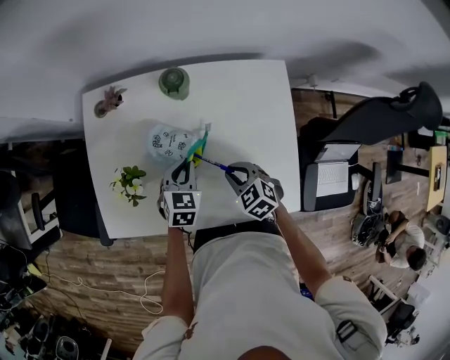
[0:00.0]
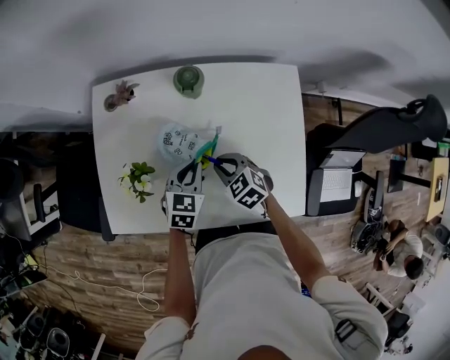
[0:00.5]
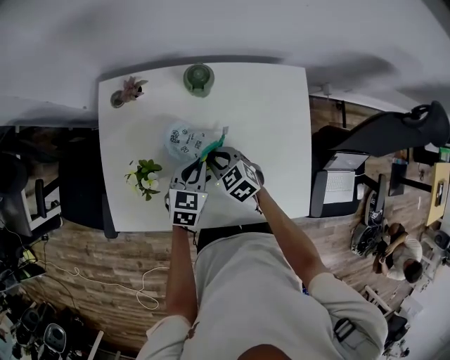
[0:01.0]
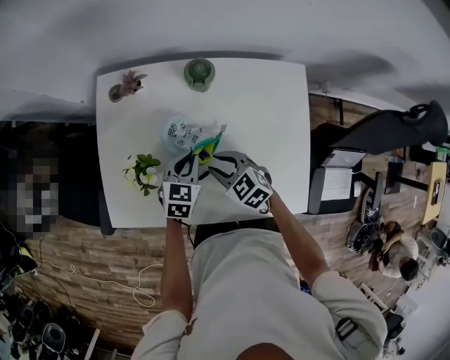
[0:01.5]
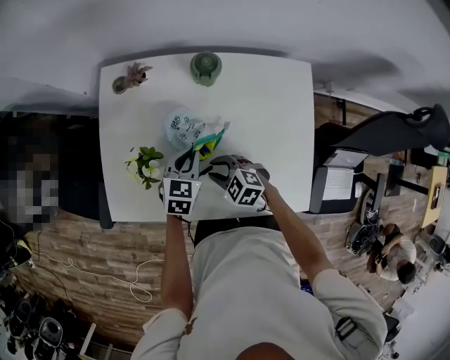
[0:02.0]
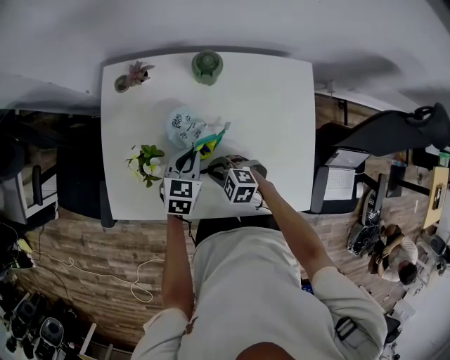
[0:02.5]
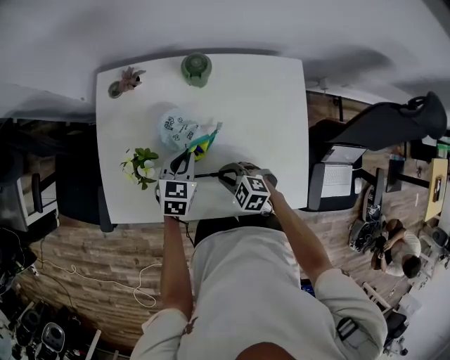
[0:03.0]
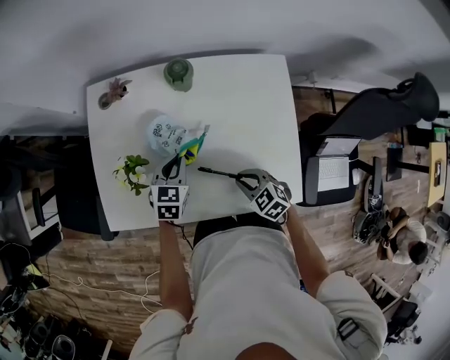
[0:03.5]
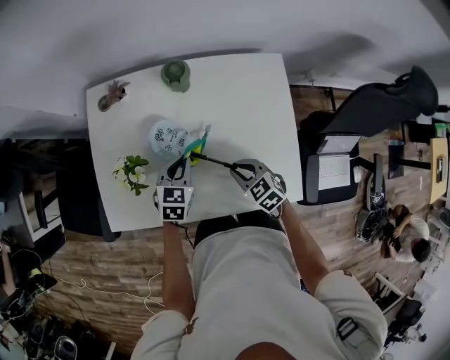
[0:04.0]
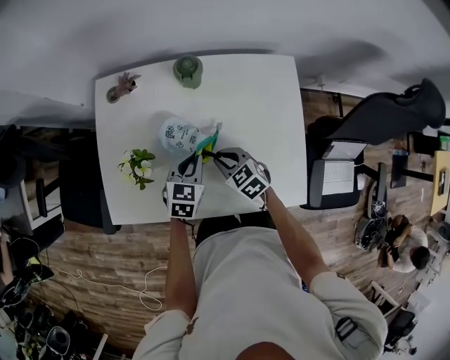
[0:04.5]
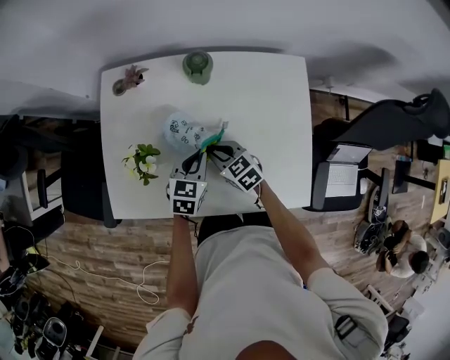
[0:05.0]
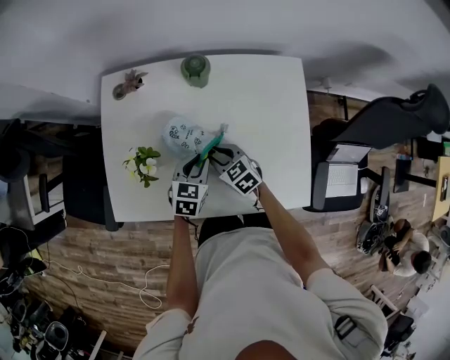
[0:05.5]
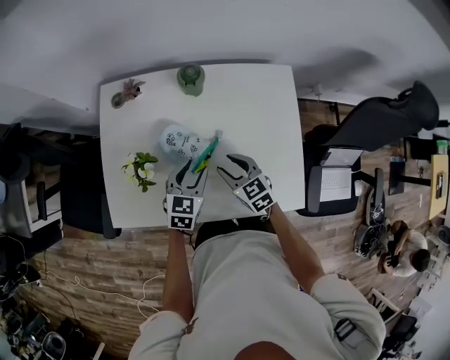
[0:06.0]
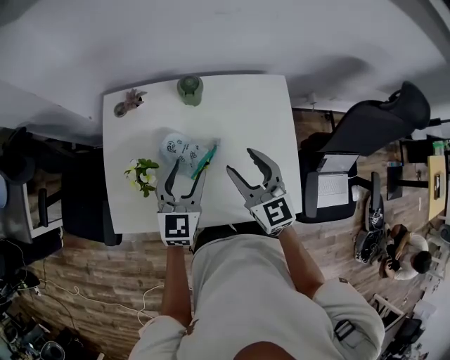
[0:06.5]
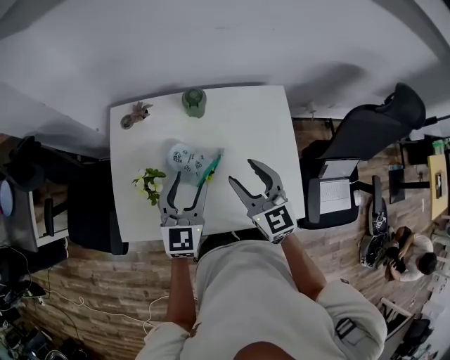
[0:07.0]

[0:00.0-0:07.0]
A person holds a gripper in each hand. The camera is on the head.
0:00.0 to 0:02.0: The right gripper moves to the left, about 10 cm, and turns by about 20 degrees.
0:02.0 to 0:03.5: The right gripper heads to the right and backward, covering some 15 cm, and rotates roughly 20 degrees.
0:03.5 to 0:05.0: The right gripper is displaced forward and to the left by approximately 15 cm.
0:05.0 to 0:07.0: The two grippers go approximately 20 cm upward. The right gripper swivels roughly 40 degrees, and opens its fingers; the left gripper changes its angle by roughly 30 degrees, and opens up.

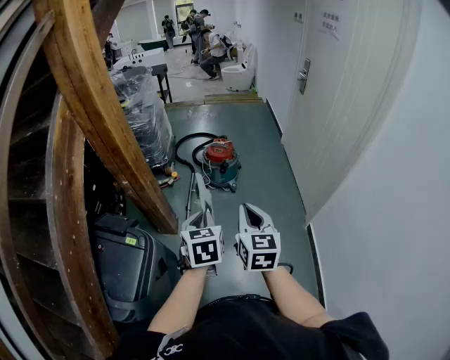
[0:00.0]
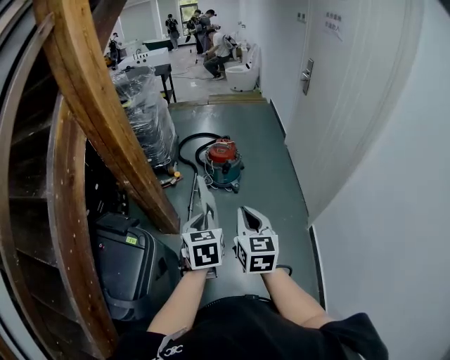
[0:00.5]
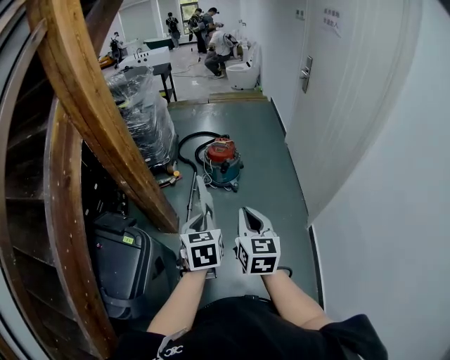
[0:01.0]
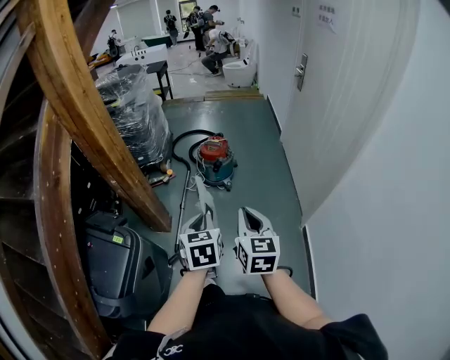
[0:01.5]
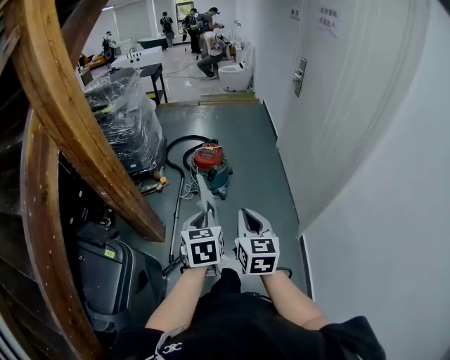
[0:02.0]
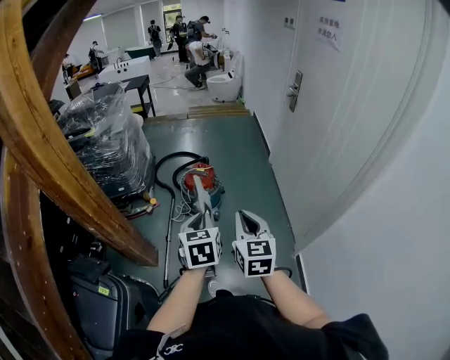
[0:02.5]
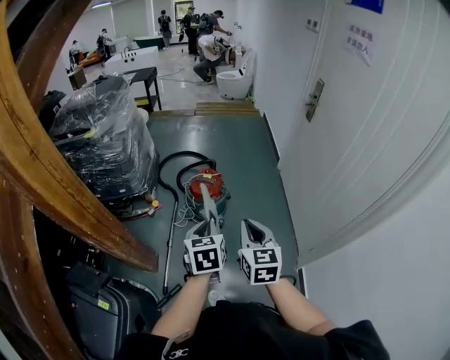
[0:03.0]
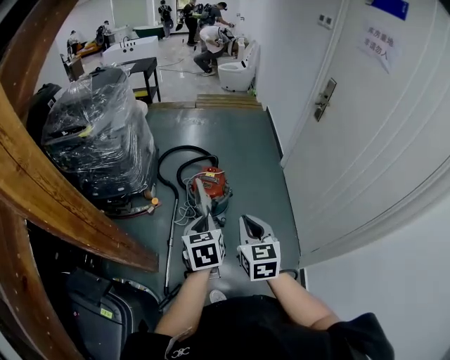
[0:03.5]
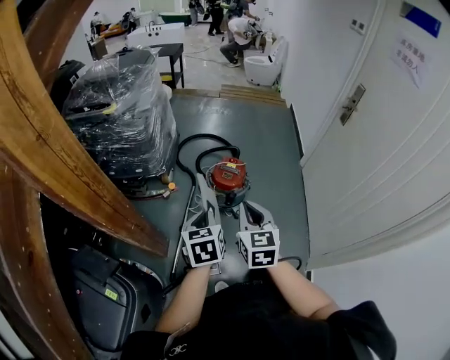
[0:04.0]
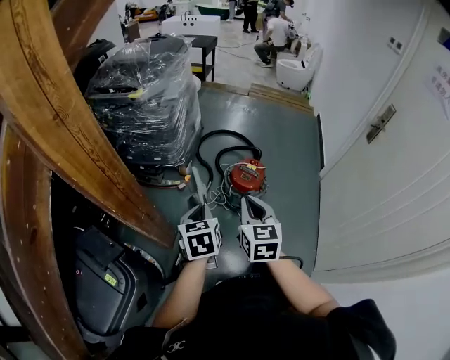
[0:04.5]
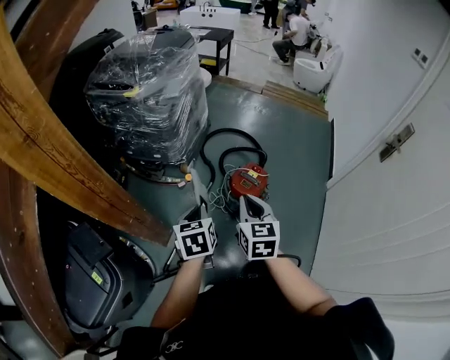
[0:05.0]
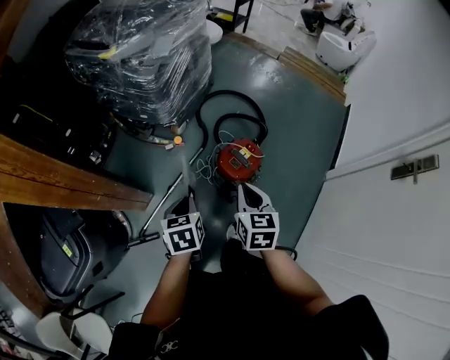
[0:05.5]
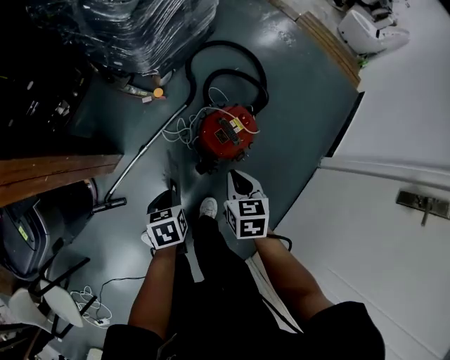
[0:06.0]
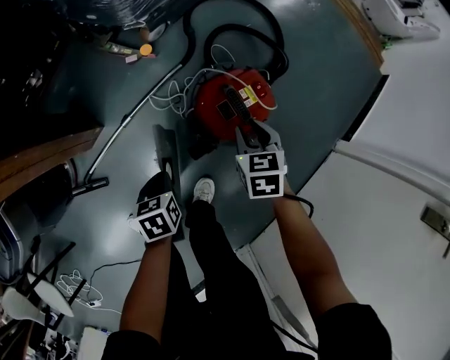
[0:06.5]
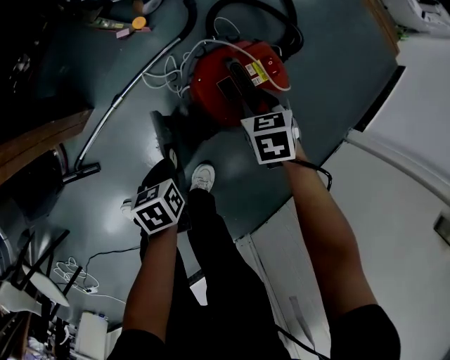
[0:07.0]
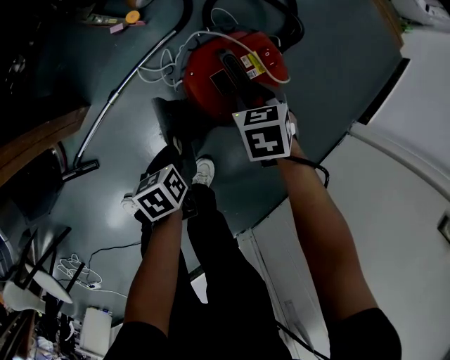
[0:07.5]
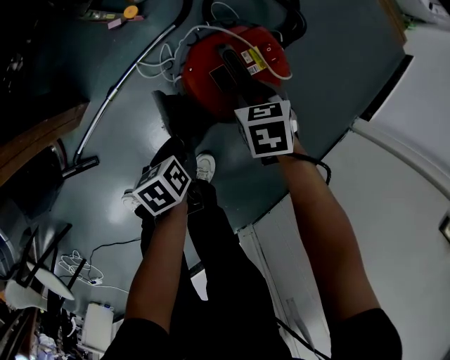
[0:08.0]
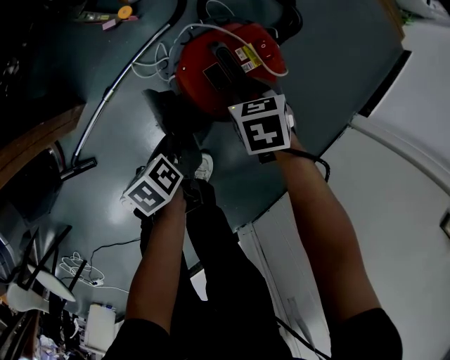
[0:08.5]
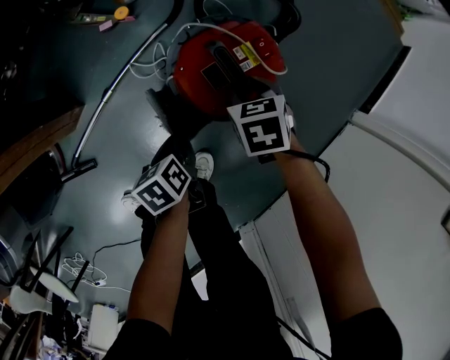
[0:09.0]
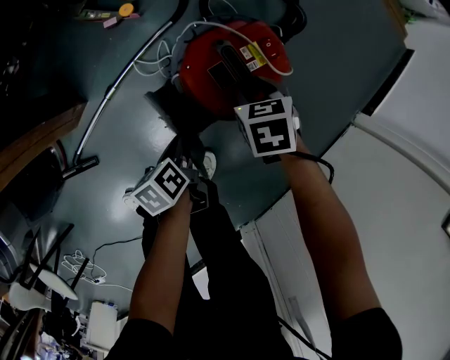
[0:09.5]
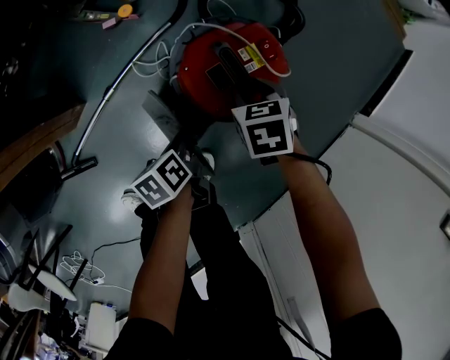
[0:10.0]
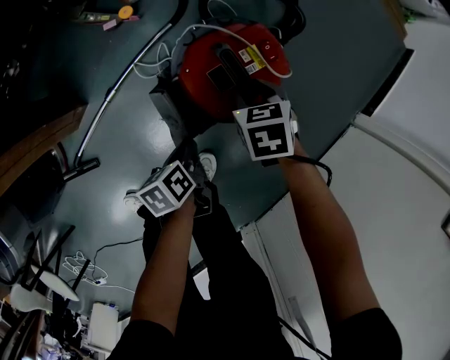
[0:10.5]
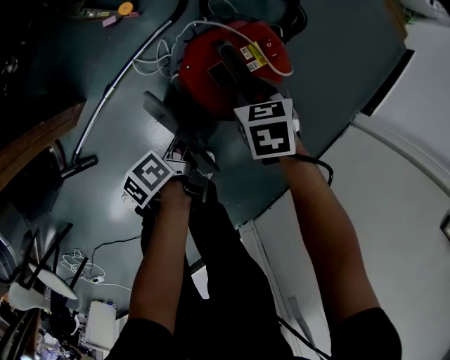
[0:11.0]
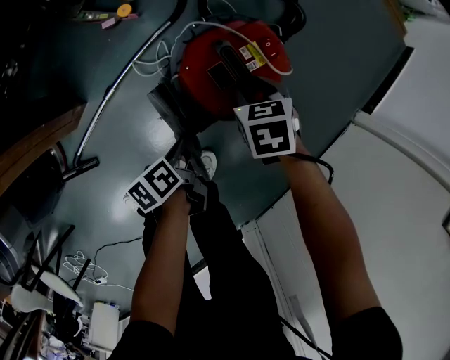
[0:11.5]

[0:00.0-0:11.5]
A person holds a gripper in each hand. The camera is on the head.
0:00.0 to 0:02.0: Both grippers travel together to the right and forward, some 15 cm.
0:02.0 to 0:04.0: The two grippers go some 30 cm forward.
0:04.0 to 0:06.0: The right gripper moves some 40 cm, and rotates roughly 40 degrees; the left gripper travels downward by roughly 30 cm, and turns by about 40 degrees.
0:06.0 to 0:07.5: The right gripper moves downward and forward, approximately 30 cm, swivels about 20 degrees, and opens its fingers, while the left gripper is displaced downward by some 25 cm.

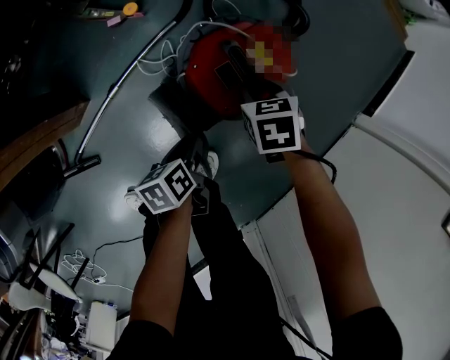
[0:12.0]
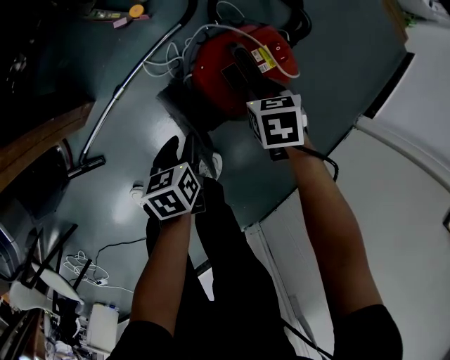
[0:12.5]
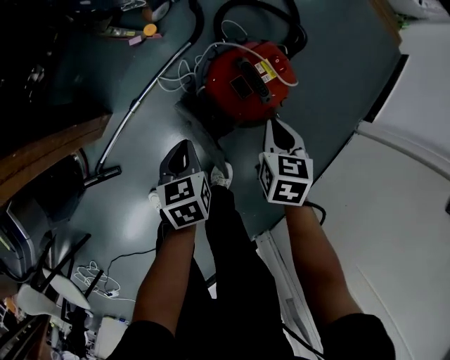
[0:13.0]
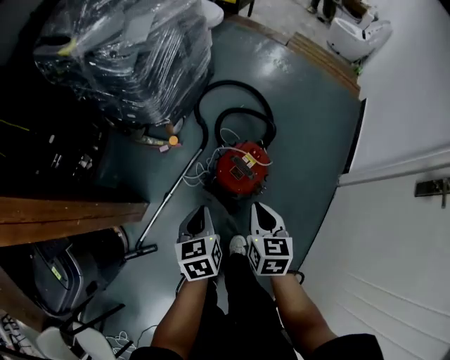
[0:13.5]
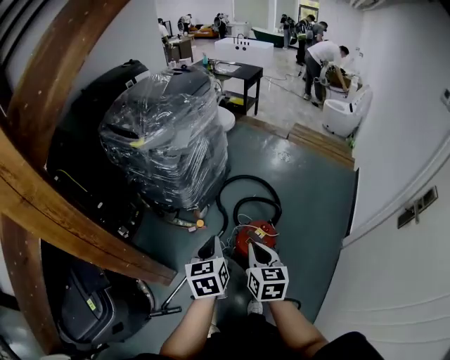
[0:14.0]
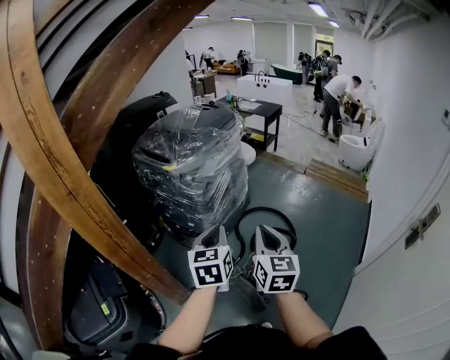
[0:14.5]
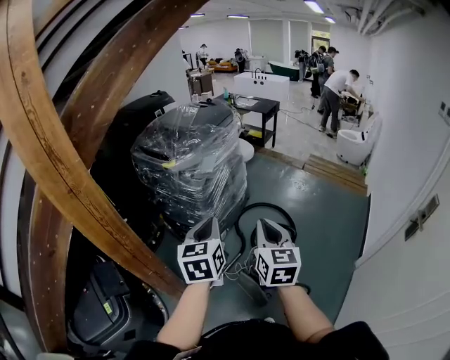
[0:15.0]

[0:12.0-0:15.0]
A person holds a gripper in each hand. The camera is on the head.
0:12.0 to 0:13.5: The left gripper heads upward, covering approximately 35 cm, changes its angle by approximately 40 degrees, and closes; the right gripper moves upward and backward, approximately 35 cm, swivels about 40 degrees, and closes up.
0:13.5 to 0:15.0: The grippers both shift upward by approximately 40 cm. The left gripper changes its angle by approximately 30 degrees; the right gripper tilts its fingers about 30 degrees upward.

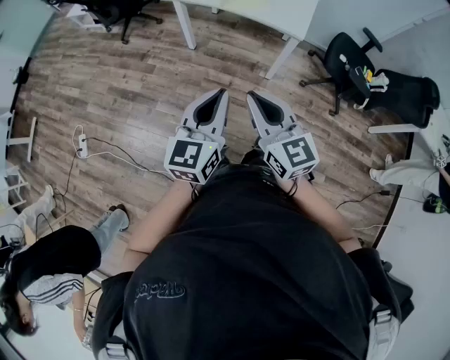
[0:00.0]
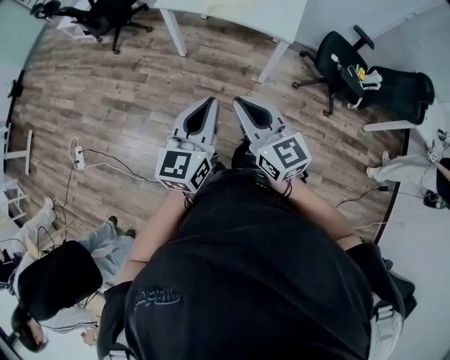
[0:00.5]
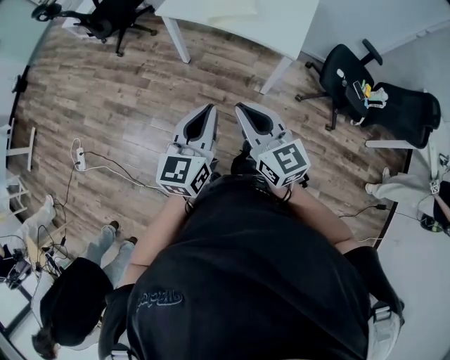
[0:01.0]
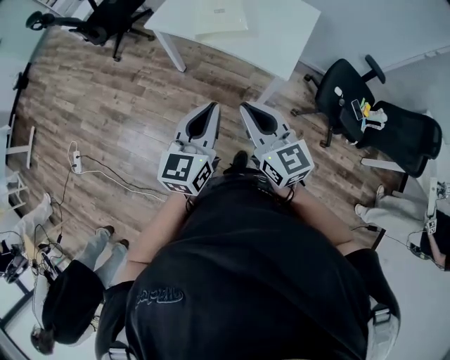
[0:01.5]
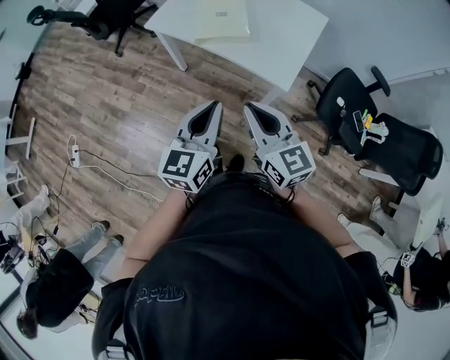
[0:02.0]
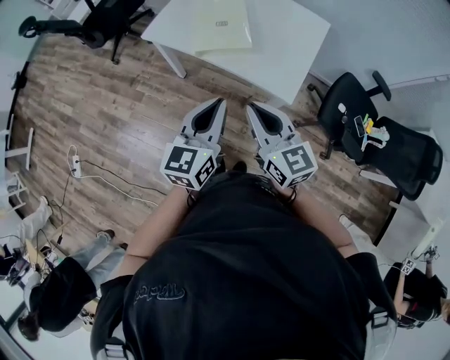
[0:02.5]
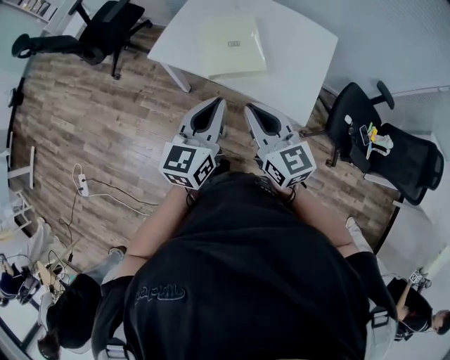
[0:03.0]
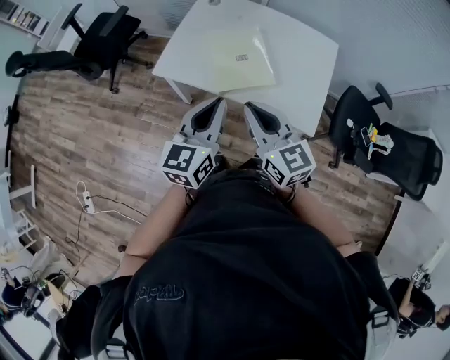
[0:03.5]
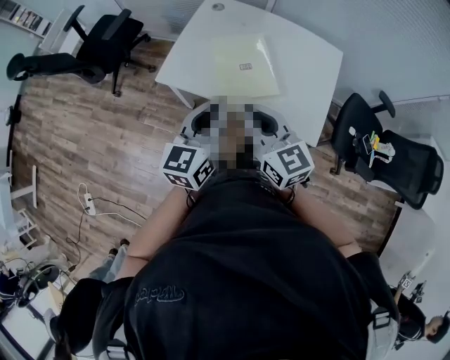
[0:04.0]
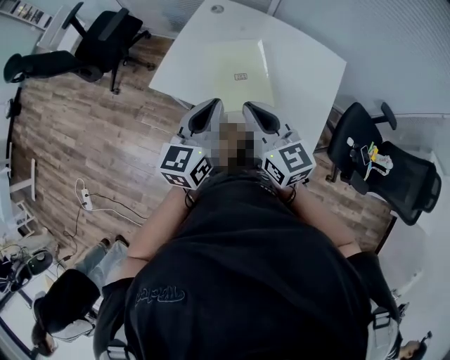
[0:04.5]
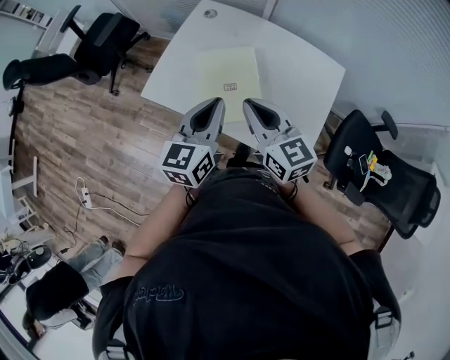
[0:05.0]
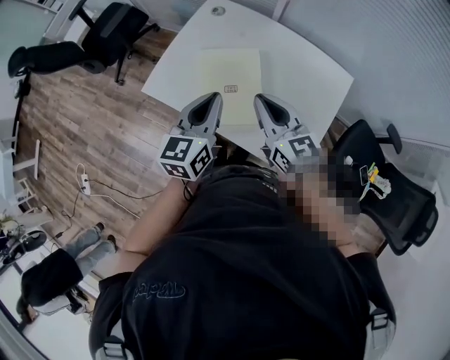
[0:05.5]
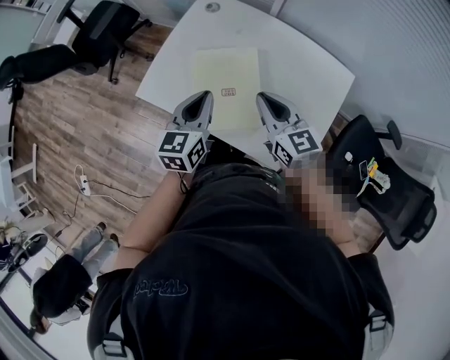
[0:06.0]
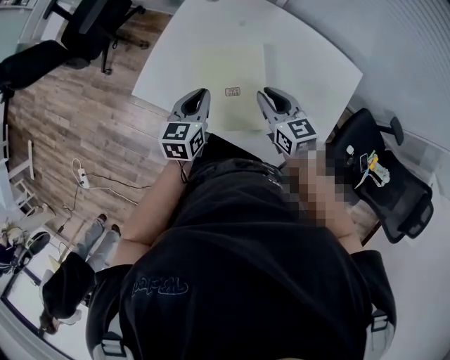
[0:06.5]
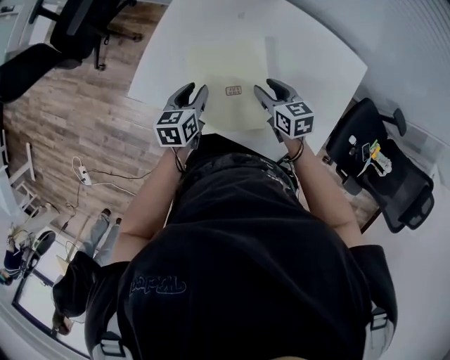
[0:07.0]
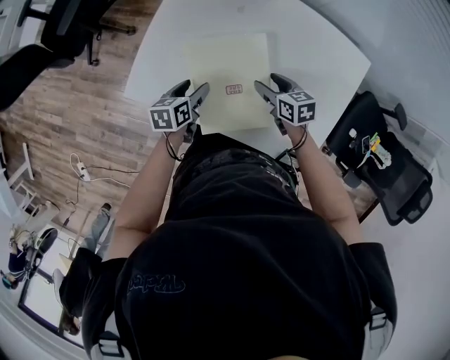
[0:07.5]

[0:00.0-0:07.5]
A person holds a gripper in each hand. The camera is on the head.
0:00.0 to 0:02.0: Both grippers move forward and to the right, some 30 cm.
0:02.0 to 0:04.0: Both grippers move forward and to the left, roughly 30 cm.
0:04.0 to 0:05.5: The grippers both shift forward and to the right by roughly 20 cm.
0:05.5 to 0:07.5: The two grippers go roughly 30 cm downward. The left gripper tilts its fingers roughly 30 degrees downward, and opens its fingers; the right gripper tilts its fingers some 30 degrees downward, and opens up.
